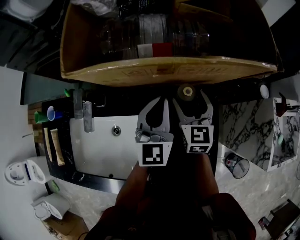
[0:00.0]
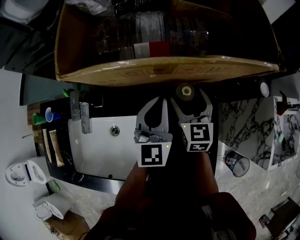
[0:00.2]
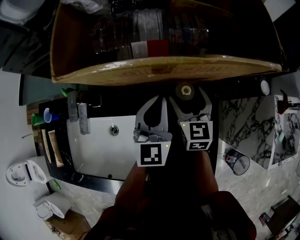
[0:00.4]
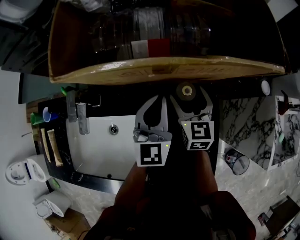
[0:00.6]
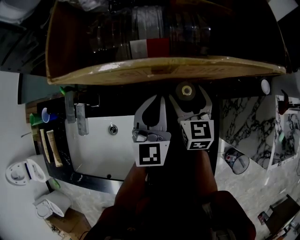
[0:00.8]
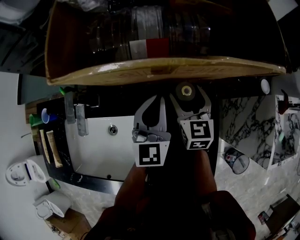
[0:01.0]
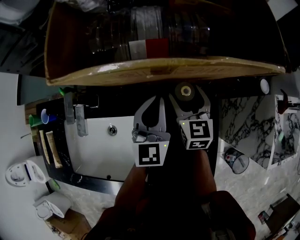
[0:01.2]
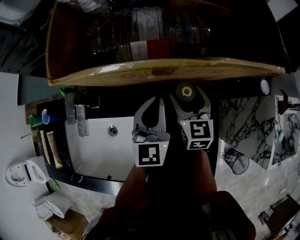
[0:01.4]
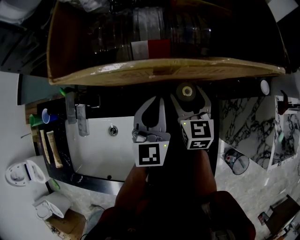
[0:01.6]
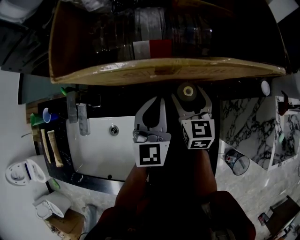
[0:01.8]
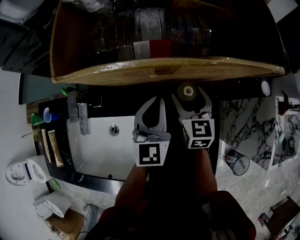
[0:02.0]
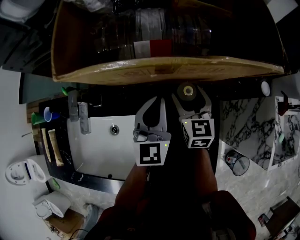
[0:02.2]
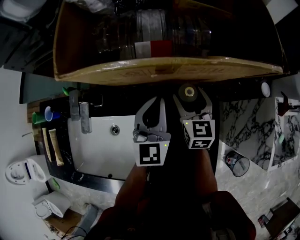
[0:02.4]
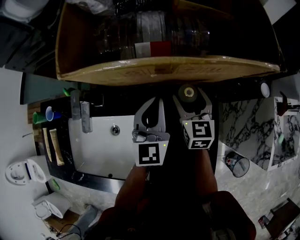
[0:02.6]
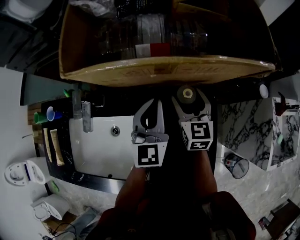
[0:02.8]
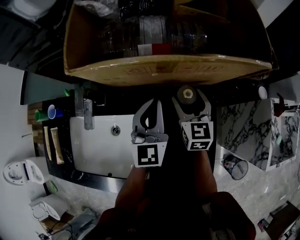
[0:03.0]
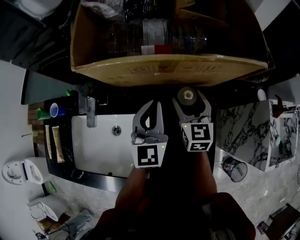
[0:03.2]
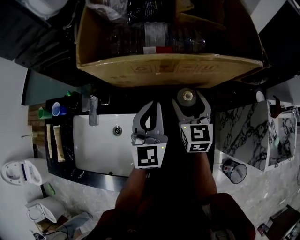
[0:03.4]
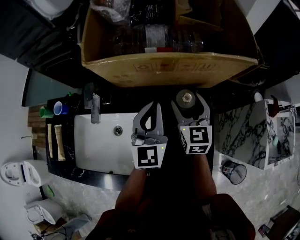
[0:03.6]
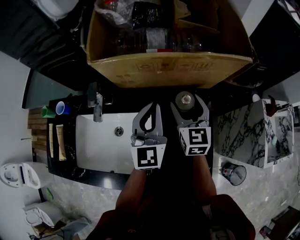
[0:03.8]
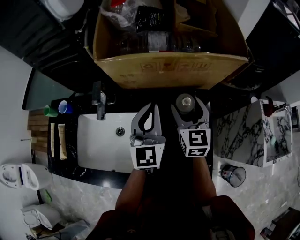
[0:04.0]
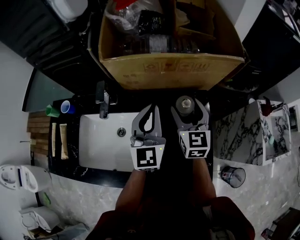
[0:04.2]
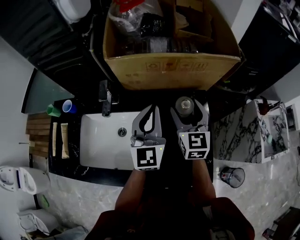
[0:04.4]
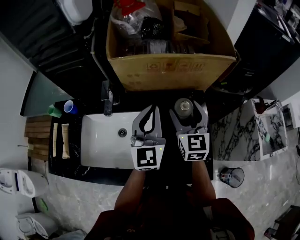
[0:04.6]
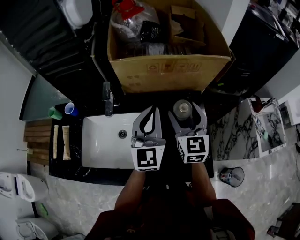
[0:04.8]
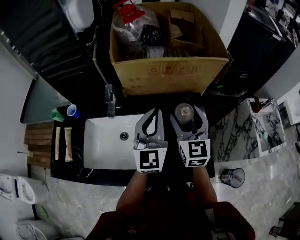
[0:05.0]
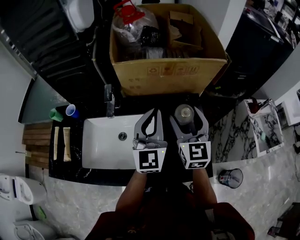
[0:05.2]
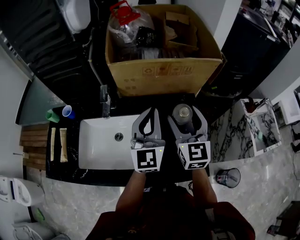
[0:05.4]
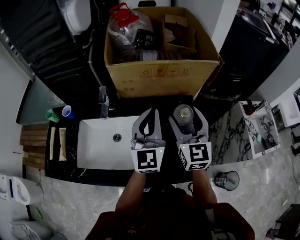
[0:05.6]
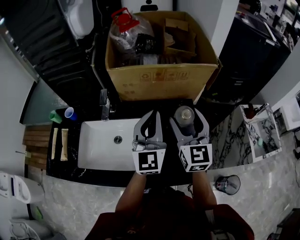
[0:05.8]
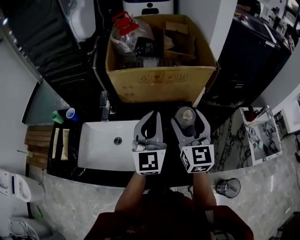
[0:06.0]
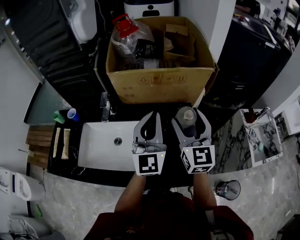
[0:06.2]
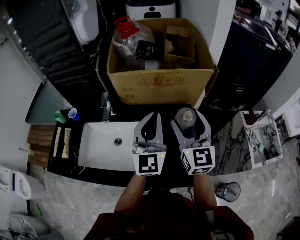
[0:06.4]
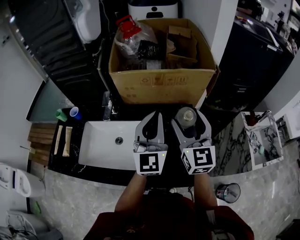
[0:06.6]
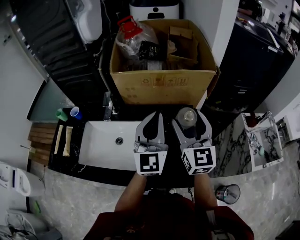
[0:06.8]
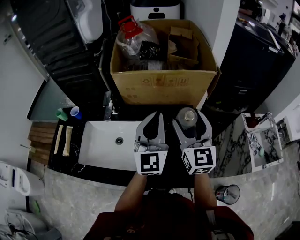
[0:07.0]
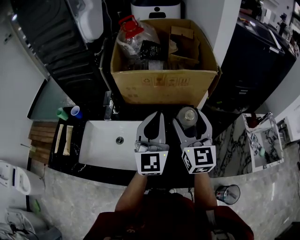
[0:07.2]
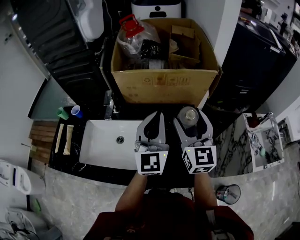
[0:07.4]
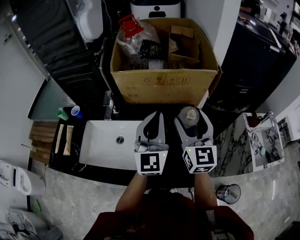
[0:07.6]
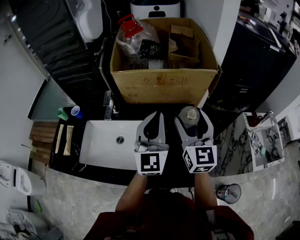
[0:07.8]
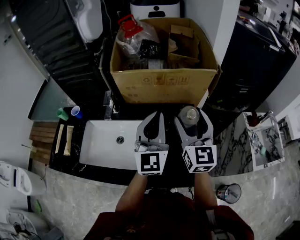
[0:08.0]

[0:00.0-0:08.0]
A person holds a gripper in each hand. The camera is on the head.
0:00.0 to 0:01.6: The grippers move only a little.
0:01.6 to 0:03.2: The left gripper ends up approximately 5 cm from where it was, while the right gripper moves upward, roughly 5 cm.
0:03.2 to 0:04.8: The grippers both shift backward and upward by roughly 20 cm.
0:04.8 to 0:06.4: The left gripper is displaced to the right and upward by approximately 10 cm; the right gripper heads upward, to the right and backward, covering some 15 cm.
0:06.4 to 0:08.0: Both grippers stay about where they are.

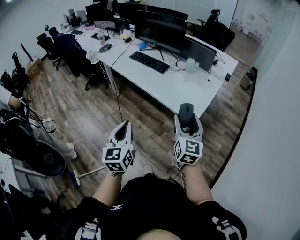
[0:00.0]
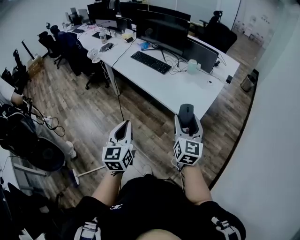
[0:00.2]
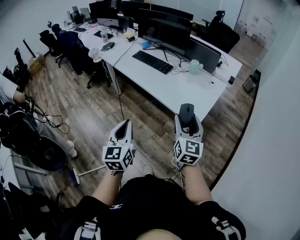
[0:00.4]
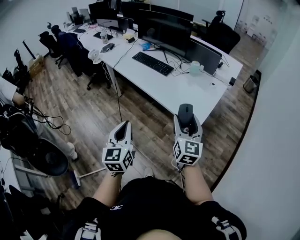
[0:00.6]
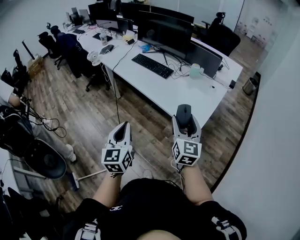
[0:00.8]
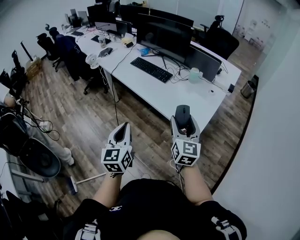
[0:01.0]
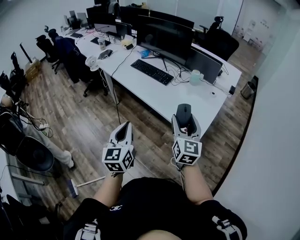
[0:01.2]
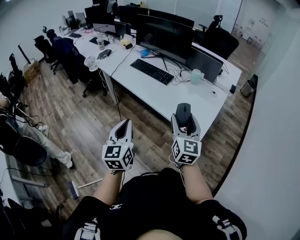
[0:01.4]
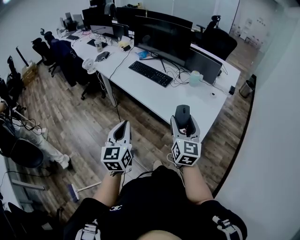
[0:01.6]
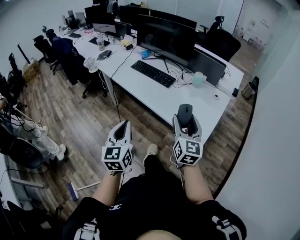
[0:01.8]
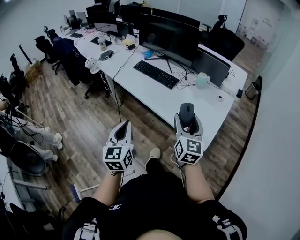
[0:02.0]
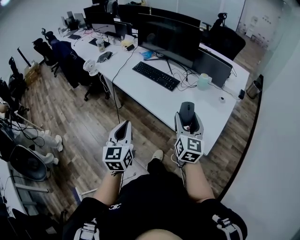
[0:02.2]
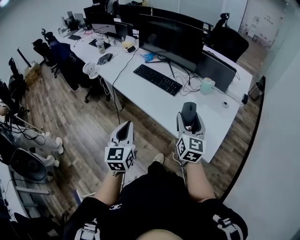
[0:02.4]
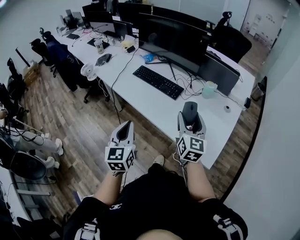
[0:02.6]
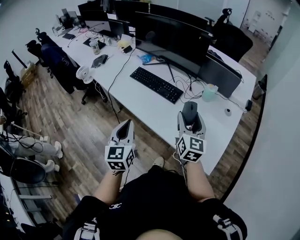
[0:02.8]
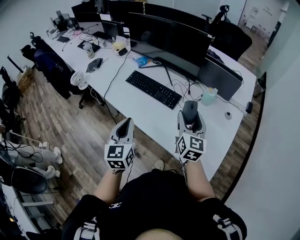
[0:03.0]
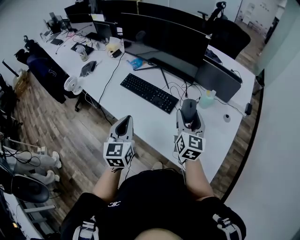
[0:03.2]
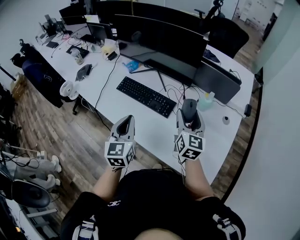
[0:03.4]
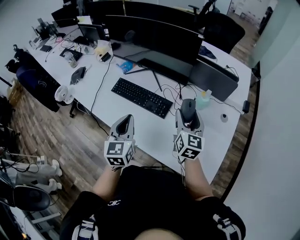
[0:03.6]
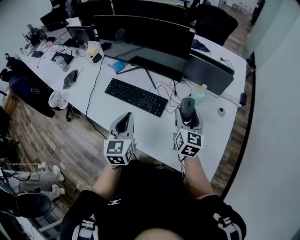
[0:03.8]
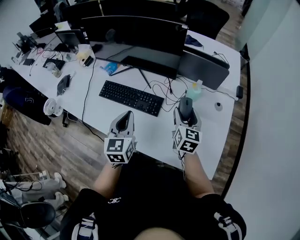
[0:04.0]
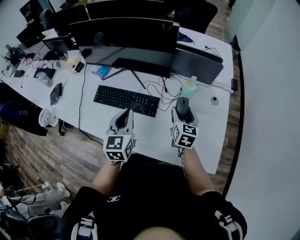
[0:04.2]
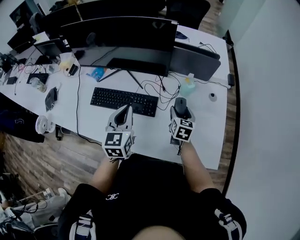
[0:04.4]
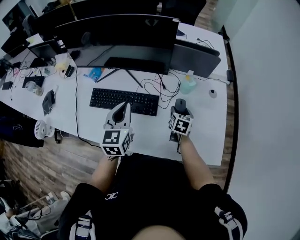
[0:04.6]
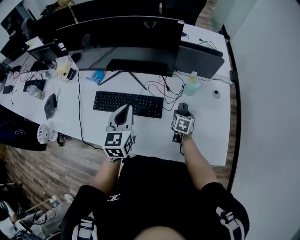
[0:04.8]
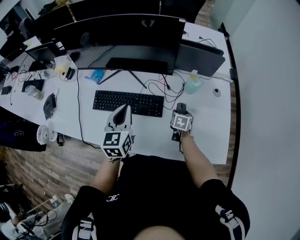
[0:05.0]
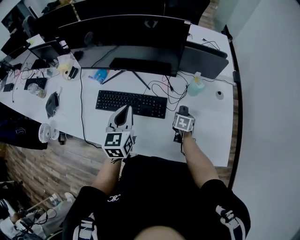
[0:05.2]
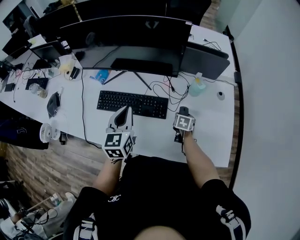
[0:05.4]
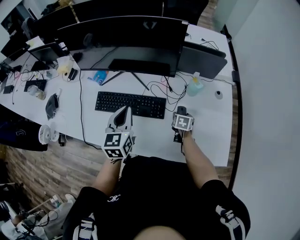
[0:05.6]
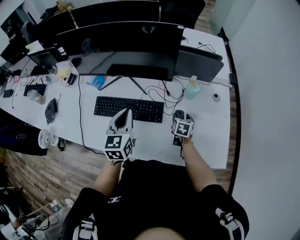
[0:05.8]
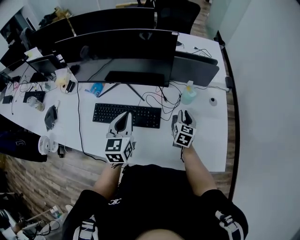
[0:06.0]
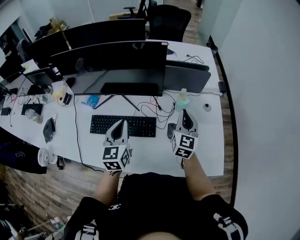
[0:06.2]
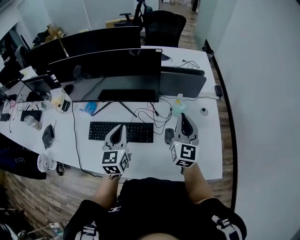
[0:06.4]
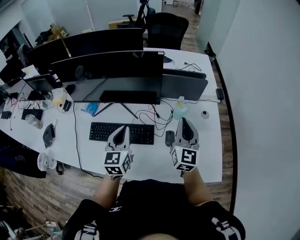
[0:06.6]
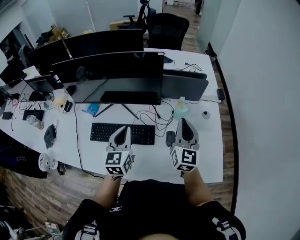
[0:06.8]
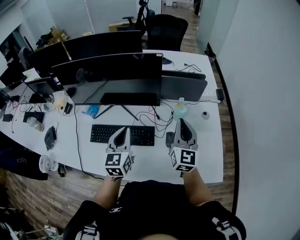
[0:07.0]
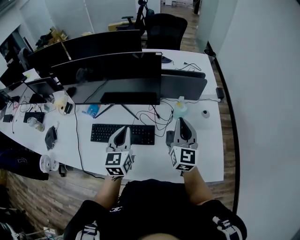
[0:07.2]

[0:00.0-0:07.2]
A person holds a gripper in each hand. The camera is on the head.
0:00.0 to 0:01.4: Both grippers travel together forward and to the left, approximately 15 cm.
0:01.4 to 0:02.8: The grippers both shift forward by approximately 30 cm.
0:02.8 to 0:04.4: The right gripper ends up approximately 30 cm from where it was, and swivels about 40 degrees. The left gripper changes place by about 35 cm, and swivels approximately 30 degrees.
0:04.4 to 0:05.8: The left gripper shifts about 5 cm to the left, while the right gripper moves downward, some 10 cm.
0:05.8 to 0:07.2: The right gripper is displaced upward by roughly 30 cm, points its fingers approximately 50 degrees further upward, and closes its fingers, while the left gripper ends up roughly 5 cm from where it was.

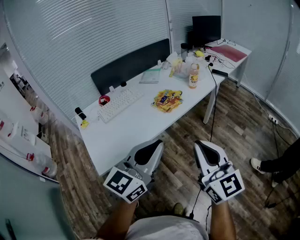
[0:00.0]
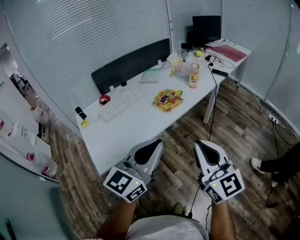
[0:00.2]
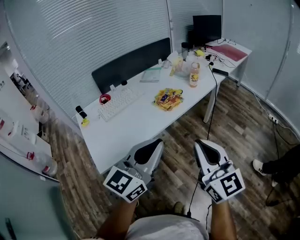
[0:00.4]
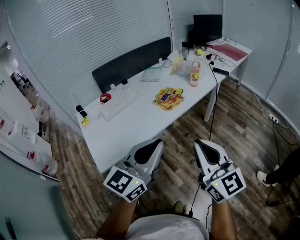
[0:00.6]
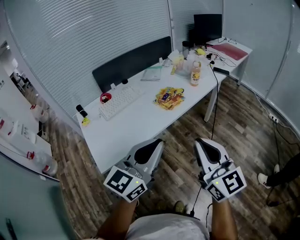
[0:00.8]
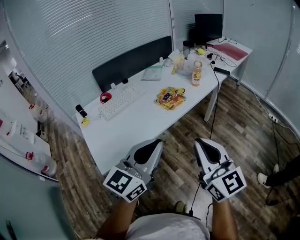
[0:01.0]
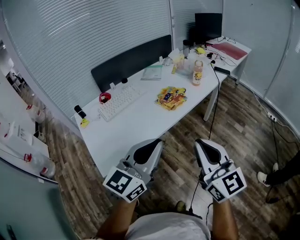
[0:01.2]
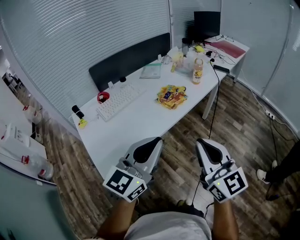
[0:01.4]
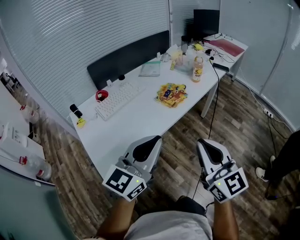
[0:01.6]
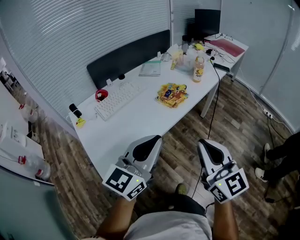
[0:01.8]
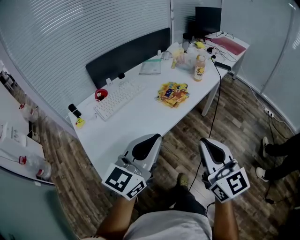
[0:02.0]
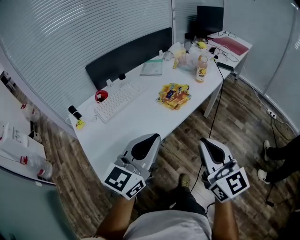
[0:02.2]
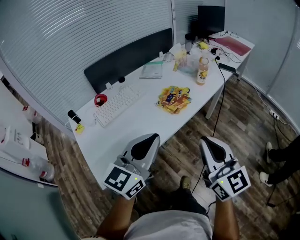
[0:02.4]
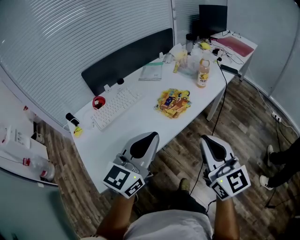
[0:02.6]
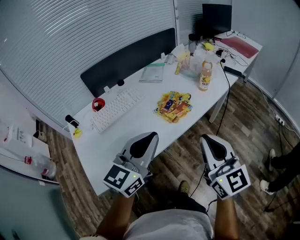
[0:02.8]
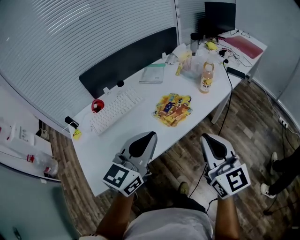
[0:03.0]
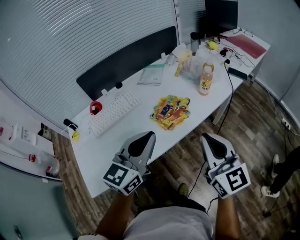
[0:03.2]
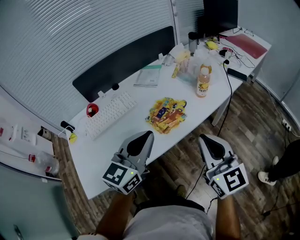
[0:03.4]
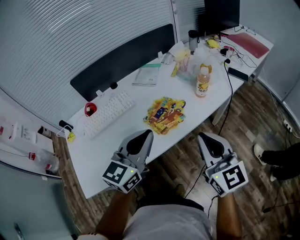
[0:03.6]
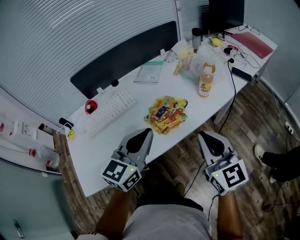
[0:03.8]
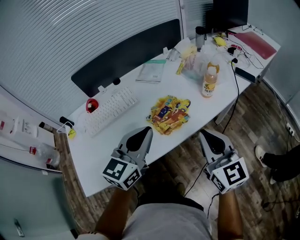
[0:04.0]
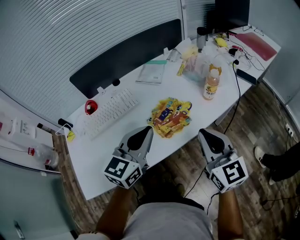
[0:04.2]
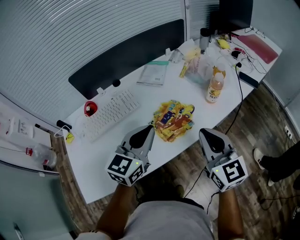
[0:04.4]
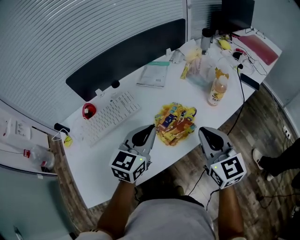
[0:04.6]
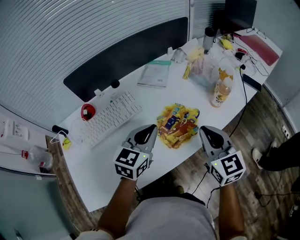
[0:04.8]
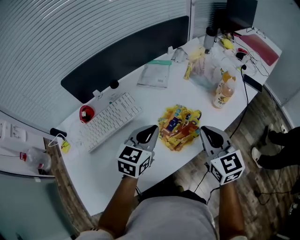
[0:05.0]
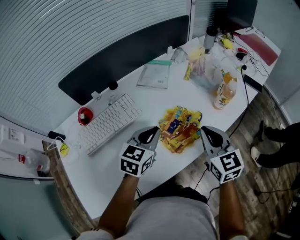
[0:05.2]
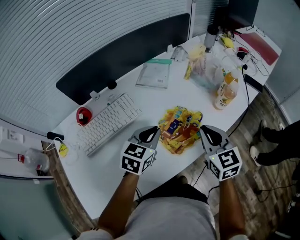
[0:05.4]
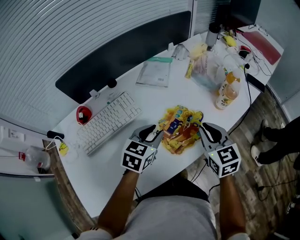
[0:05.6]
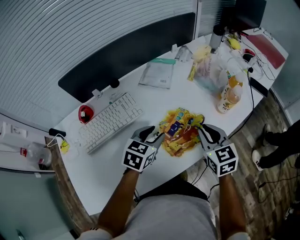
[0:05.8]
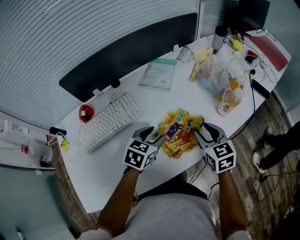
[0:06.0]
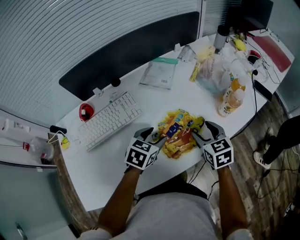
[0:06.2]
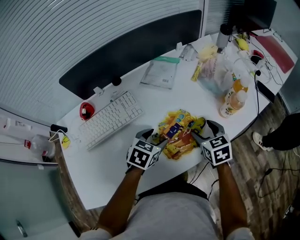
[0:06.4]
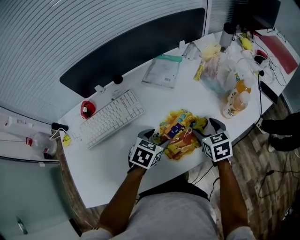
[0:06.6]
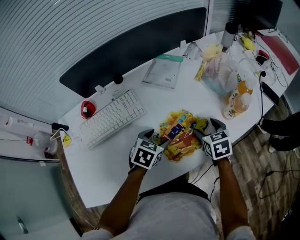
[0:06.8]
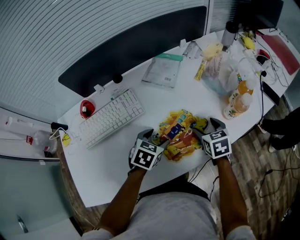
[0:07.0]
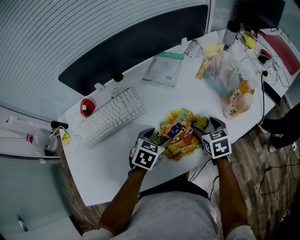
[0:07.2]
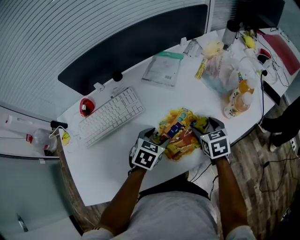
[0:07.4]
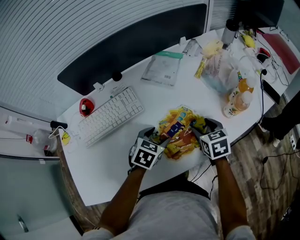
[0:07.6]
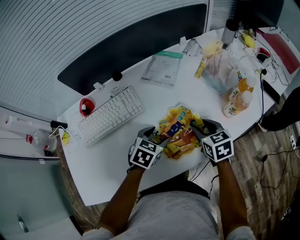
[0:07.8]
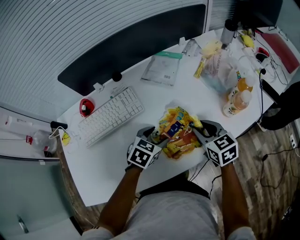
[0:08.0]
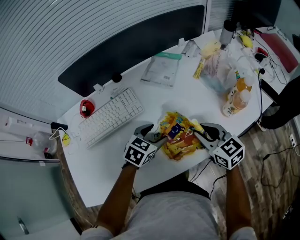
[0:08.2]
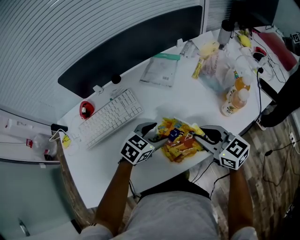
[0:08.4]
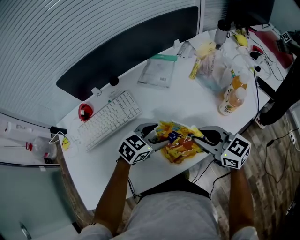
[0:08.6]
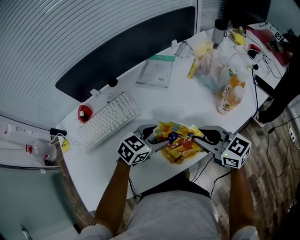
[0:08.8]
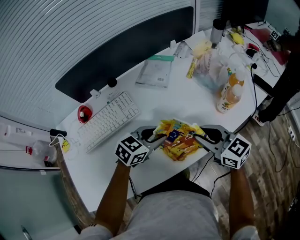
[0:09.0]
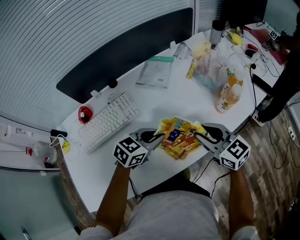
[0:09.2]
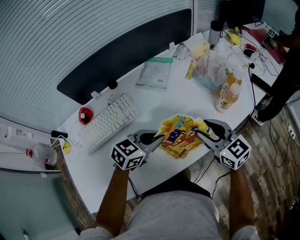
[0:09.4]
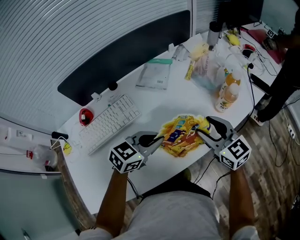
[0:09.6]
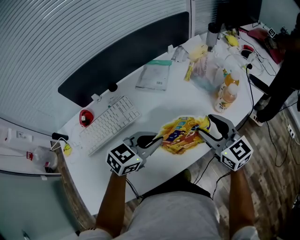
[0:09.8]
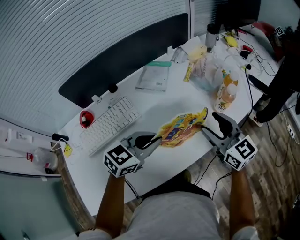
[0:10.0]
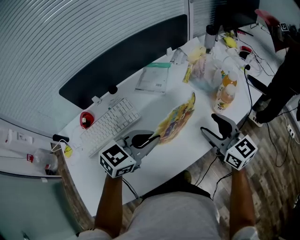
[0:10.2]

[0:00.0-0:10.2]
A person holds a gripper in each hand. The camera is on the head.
0:00.0 to 0:01.4: Both grippers move to the left, approximately 5 cm.
0:01.4 to 0:03.0: Both grippers travel together forward, some 20 cm.
0:03.0 to 0:04.4: The right gripper is displaced forward by about 15 cm, while the left gripper shifts about 15 cm forward and downward.
0:04.4 to 0:05.8: The left gripper heads downward and forward, covering some 20 cm, turns by some 30 degrees, and opens its fingers; the right gripper is displaced forward and downward by approximately 15 cm, and swivels about 20 degrees.
0:05.8 to 0:07.2: The left gripper goes about 5 cm downward, and opens up. The right gripper heads downward and forward, covering approximately 10 cm, and opens.
0:07.2 to 0:08.8: The left gripper ends up some 5 cm from where it was, and changes its angle by approximately 30 degrees, while the right gripper goes about 15 cm upward and backward, tilts its fingers about 30 degrees upward, and closes.
0:08.8 to 0:10.2: The left gripper goes about 10 cm upward, and closes; the right gripper moves upward, roughly 5 cm, turns by some 20 degrees, and opens its fingers.
